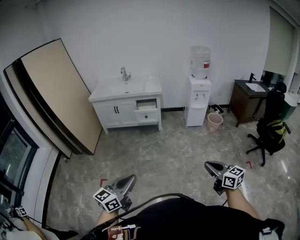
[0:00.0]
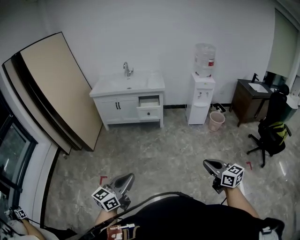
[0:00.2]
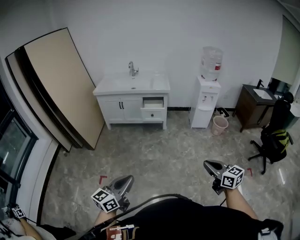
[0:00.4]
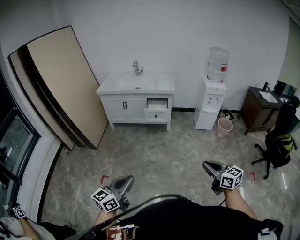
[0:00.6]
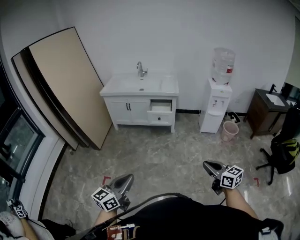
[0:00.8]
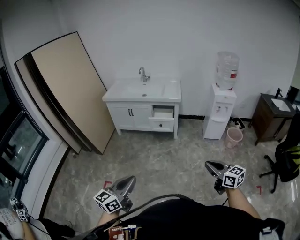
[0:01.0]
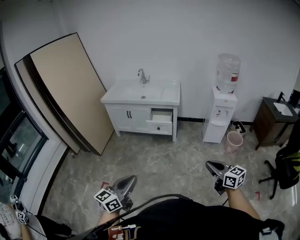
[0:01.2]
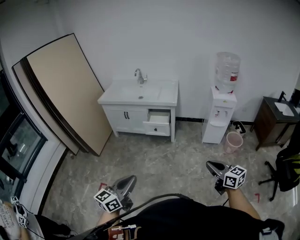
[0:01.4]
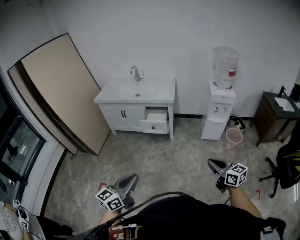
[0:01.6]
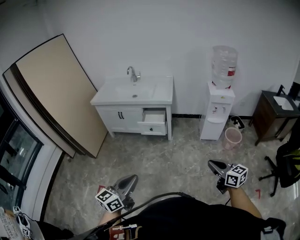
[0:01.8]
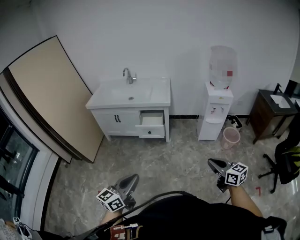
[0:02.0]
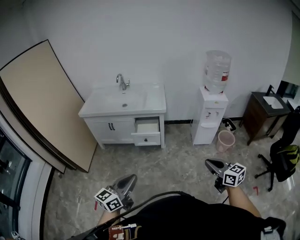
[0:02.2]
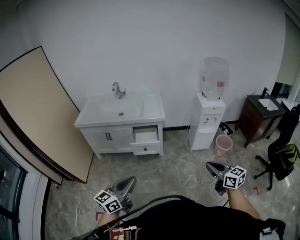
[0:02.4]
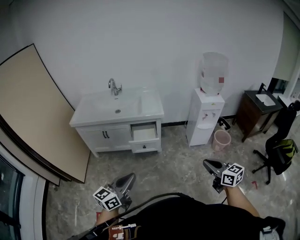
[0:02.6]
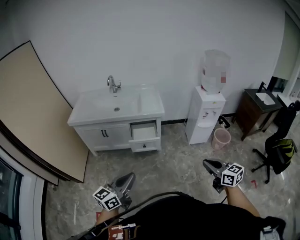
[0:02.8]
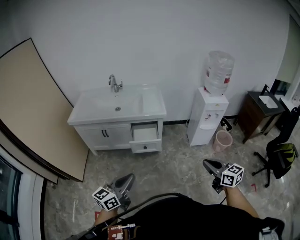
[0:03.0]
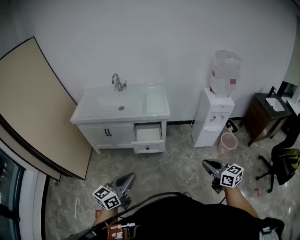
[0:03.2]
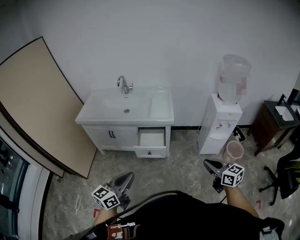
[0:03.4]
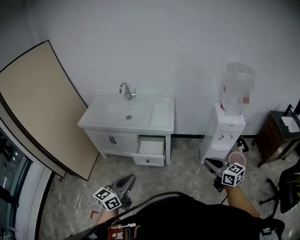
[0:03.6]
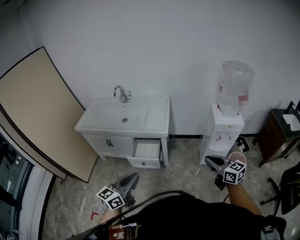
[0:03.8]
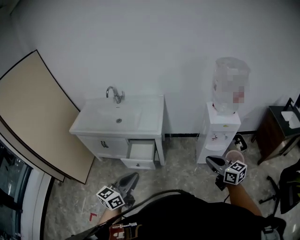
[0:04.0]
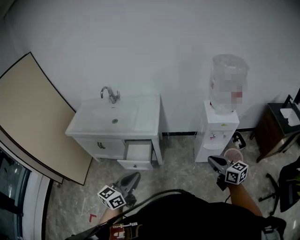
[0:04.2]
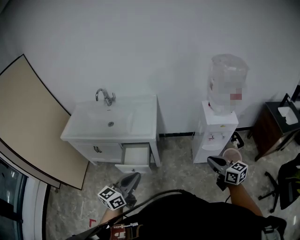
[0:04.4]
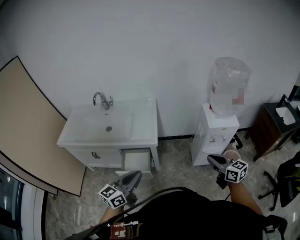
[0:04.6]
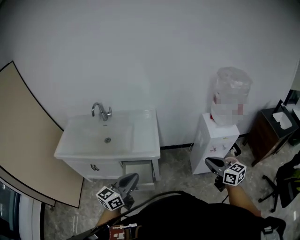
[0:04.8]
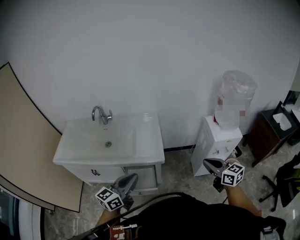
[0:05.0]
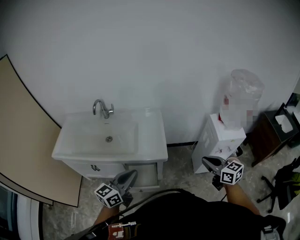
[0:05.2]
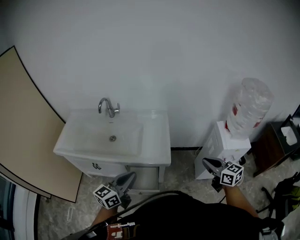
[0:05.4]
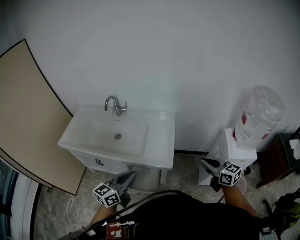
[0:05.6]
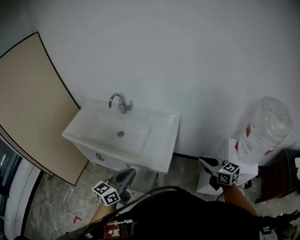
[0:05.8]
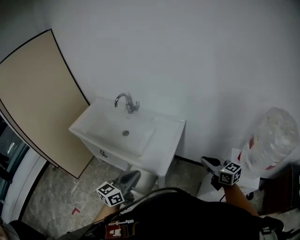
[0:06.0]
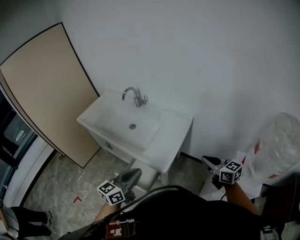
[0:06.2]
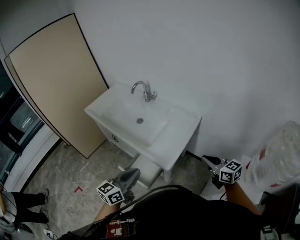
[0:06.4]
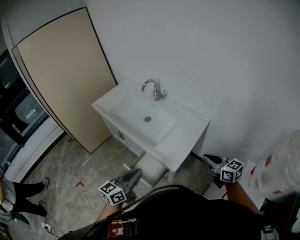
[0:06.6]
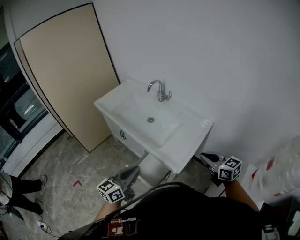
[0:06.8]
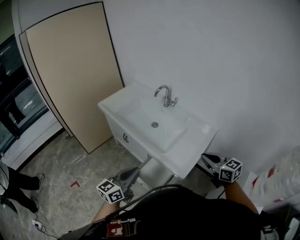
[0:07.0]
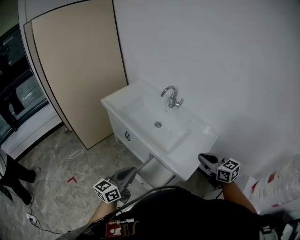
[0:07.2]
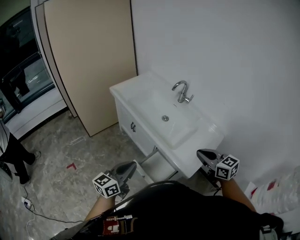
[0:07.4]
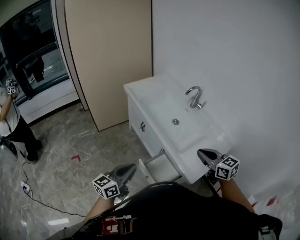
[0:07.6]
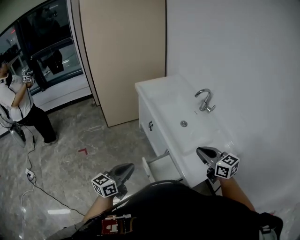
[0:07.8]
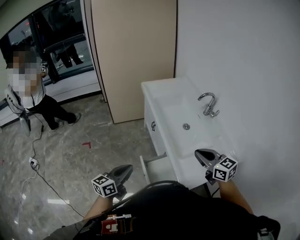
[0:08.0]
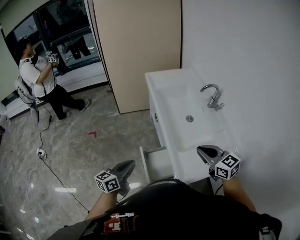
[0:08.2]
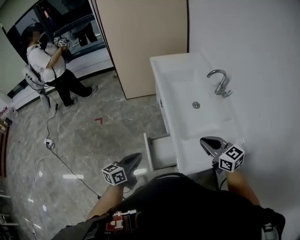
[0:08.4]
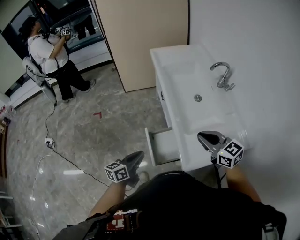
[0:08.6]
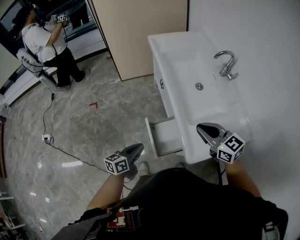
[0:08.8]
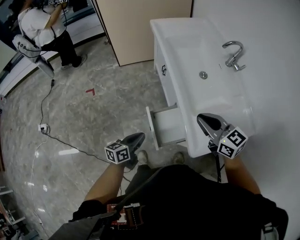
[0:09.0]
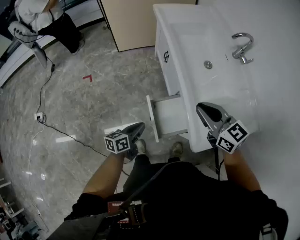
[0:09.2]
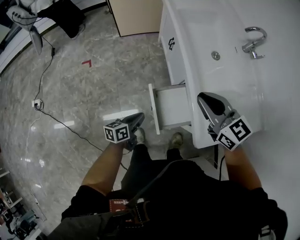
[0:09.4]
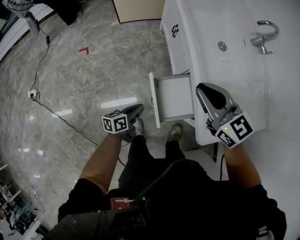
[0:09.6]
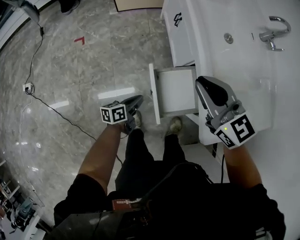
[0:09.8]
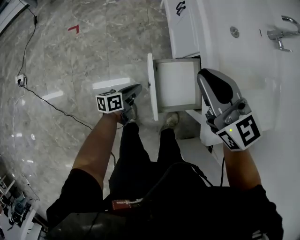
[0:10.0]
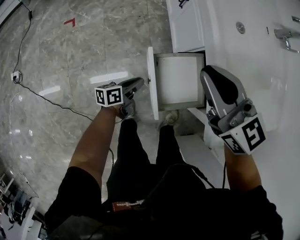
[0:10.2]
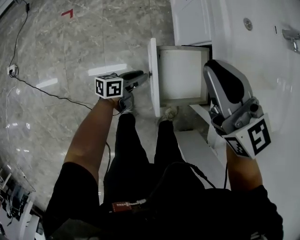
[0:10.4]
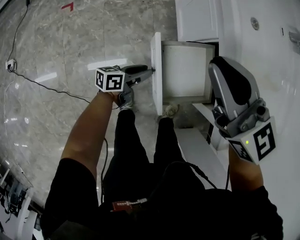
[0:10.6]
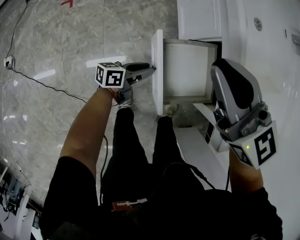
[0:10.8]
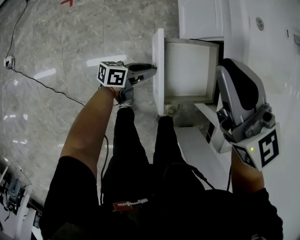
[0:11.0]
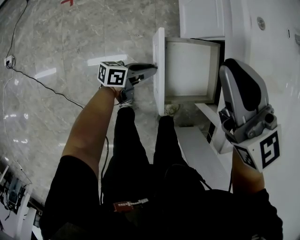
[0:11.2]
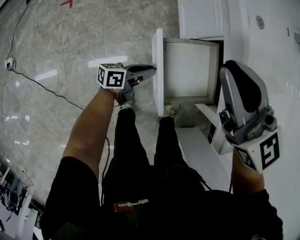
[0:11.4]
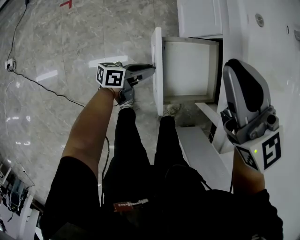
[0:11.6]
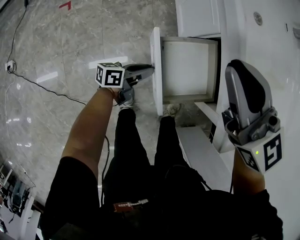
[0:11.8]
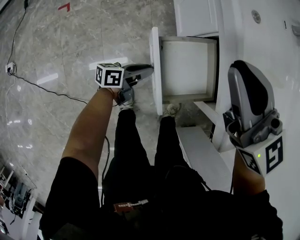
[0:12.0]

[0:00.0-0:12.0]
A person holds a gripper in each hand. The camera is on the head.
0:00.0 to 0:01.6: The grippers both shift forward and to the right by some 35 cm.
0:01.6 to 0:03.0: The two grippers go about 30 cm forward and to the left.
0:03.0 to 0:04.4: The right gripper is displaced forward and to the right by some 40 cm; the left gripper travels to the right and forward by roughly 35 cm.
0:04.4 to 0:06.0: The right gripper shifts by approximately 40 cm, and swivels some 20 degrees; the left gripper ends up roughly 30 cm from where it was.
0:06.0 to 0:07.6: The left gripper changes place by about 25 cm, and turns by approximately 30 degrees; the right gripper shifts by some 35 cm, and turns by roughly 40 degrees.
0:07.6 to 0:09.0: The left gripper shifts approximately 20 cm downward, and changes its angle by roughly 30 degrees, while the right gripper shifts about 10 cm downward and forward, reaches about 10 cm to the right, then returns, and swivels approximately 20 degrees.
0:09.0 to 0:10.4: The right gripper goes about 20 cm downward and to the left, while the left gripper shifts about 30 cm downward, and opens its fingers.
0:10.4 to 0:12.0: There are only small adjustments of the grippers.

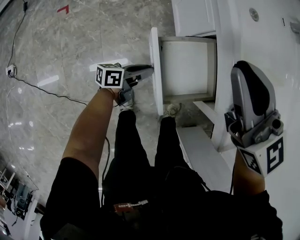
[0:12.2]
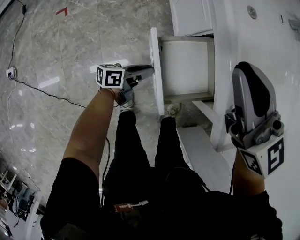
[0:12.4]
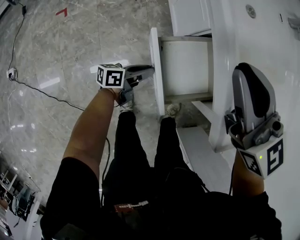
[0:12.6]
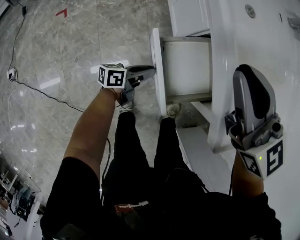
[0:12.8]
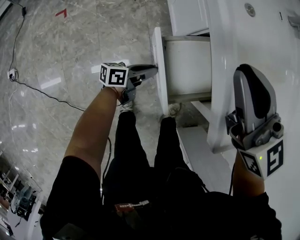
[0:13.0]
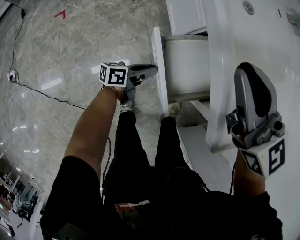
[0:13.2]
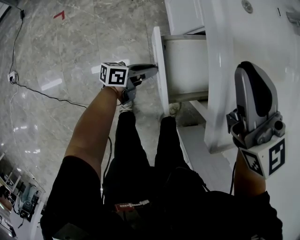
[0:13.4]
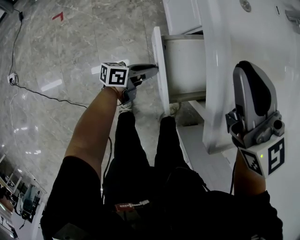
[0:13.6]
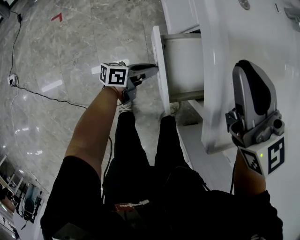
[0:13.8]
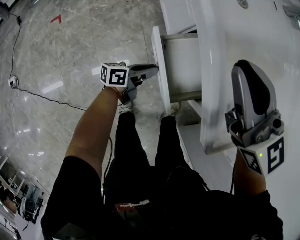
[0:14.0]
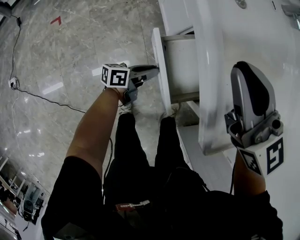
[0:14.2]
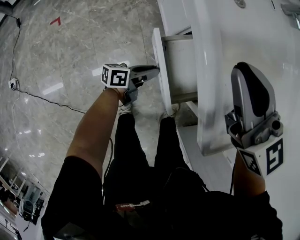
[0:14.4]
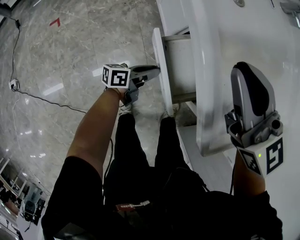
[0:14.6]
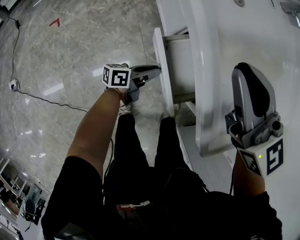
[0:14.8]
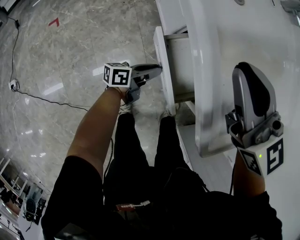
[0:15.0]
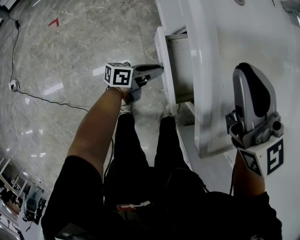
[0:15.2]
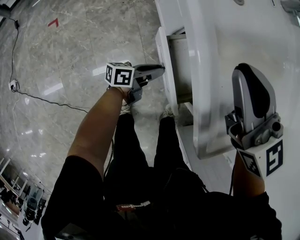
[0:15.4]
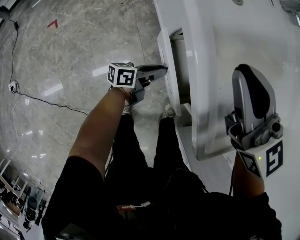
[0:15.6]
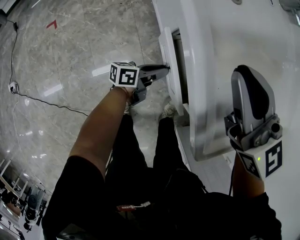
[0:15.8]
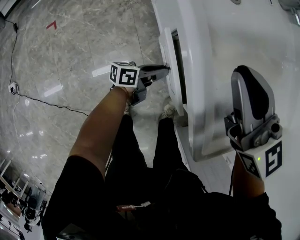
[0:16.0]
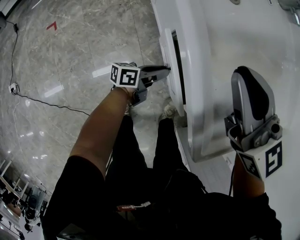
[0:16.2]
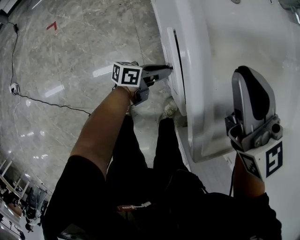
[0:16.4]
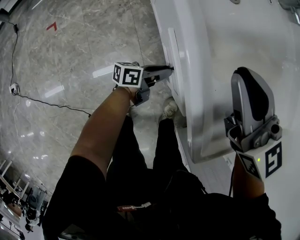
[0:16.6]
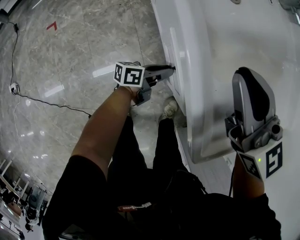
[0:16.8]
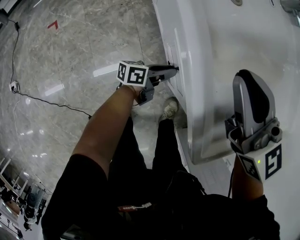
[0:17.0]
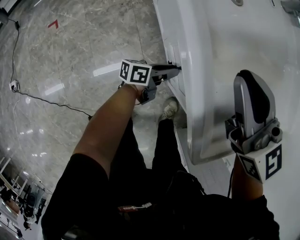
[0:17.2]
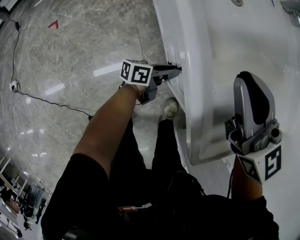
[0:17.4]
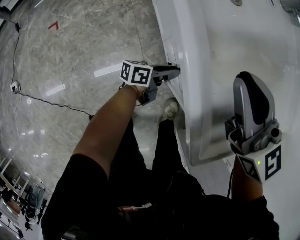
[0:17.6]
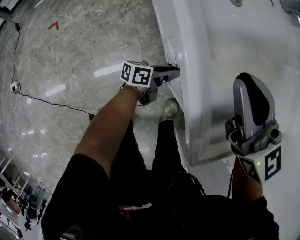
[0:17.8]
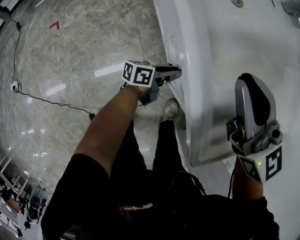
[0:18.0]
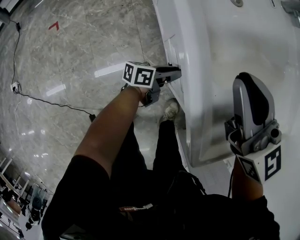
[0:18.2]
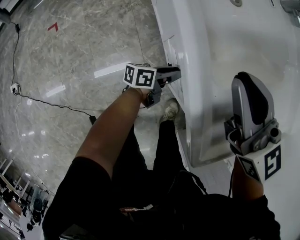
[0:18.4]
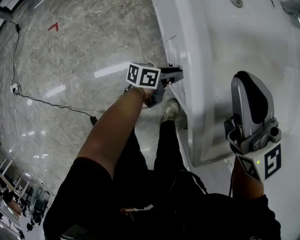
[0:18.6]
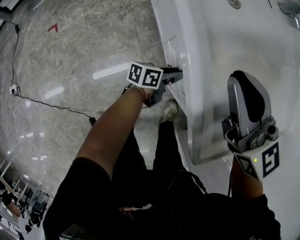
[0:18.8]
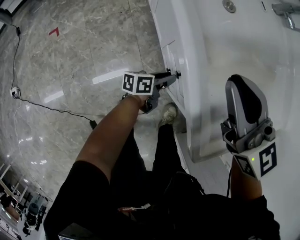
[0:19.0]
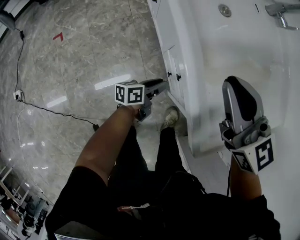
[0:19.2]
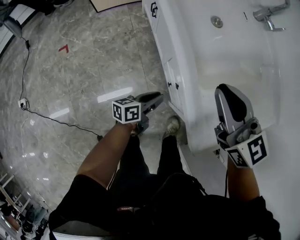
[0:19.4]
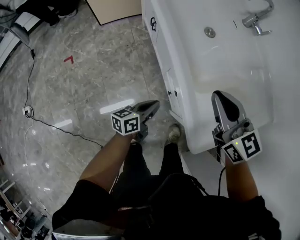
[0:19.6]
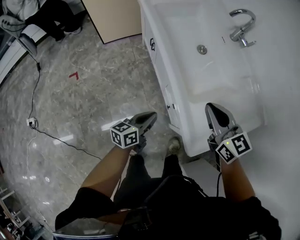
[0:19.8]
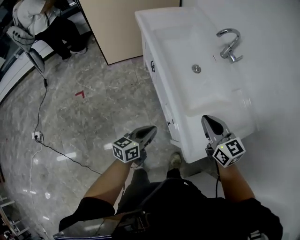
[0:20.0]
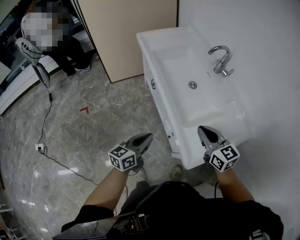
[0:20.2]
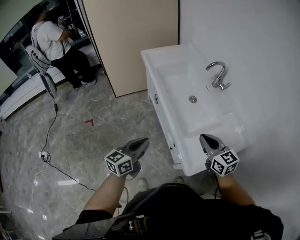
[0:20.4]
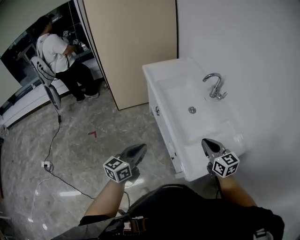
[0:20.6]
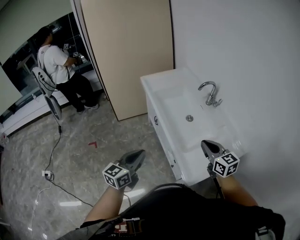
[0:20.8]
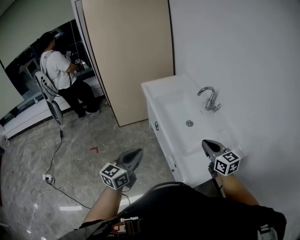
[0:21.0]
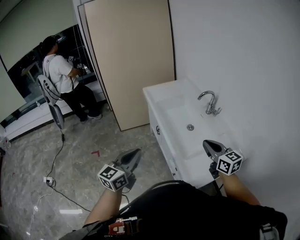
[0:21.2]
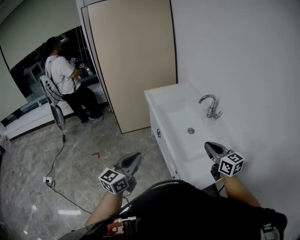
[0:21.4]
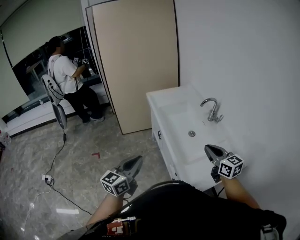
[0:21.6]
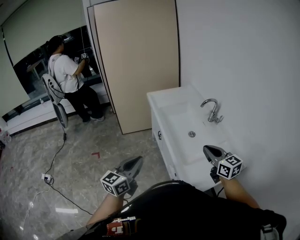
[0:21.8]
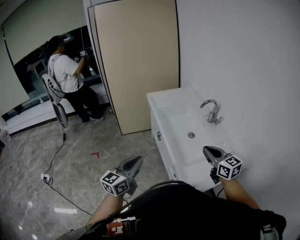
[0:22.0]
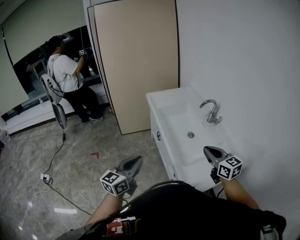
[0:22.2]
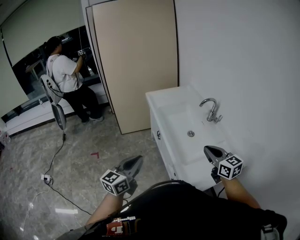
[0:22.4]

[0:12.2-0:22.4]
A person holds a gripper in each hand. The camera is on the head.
0:12.2 to 0:13.6: The left gripper moves about 5 cm. Meanwhile the right gripper shifts by roughly 5 cm.
0:13.6 to 0:15.2: The right gripper ends up about 5 cm from where it was; the left gripper goes some 5 cm to the right.
0:15.2 to 0:16.6: The left gripper changes place by about 5 cm.
0:16.6 to 0:18.0: The grippers stay close to where they were, moving slightly.
0:18.0 to 0:19.4: The left gripper heads upward, to the left and backward, covering about 15 cm. Meanwhile the right gripper moves some 5 cm.
0:19.4 to 0:21.0: The right gripper heads upward, covering some 20 cm. The left gripper shifts some 50 cm upward, rolls clockwise, seen from behind, by approximately 40 degrees, and closes.
0:21.0 to 0:22.4: There are only small adjustments of the grippers.

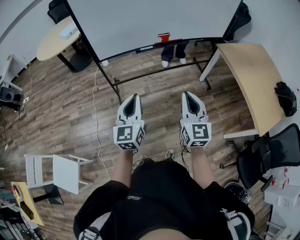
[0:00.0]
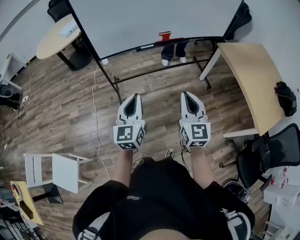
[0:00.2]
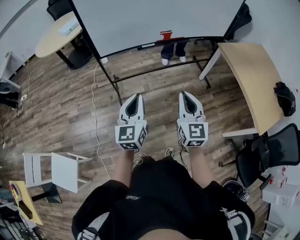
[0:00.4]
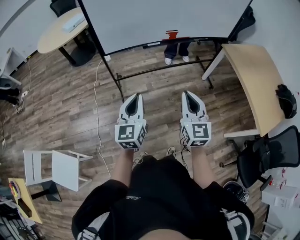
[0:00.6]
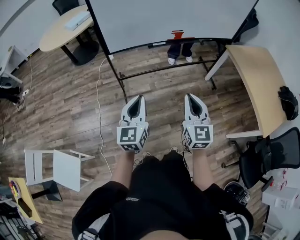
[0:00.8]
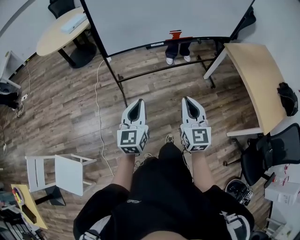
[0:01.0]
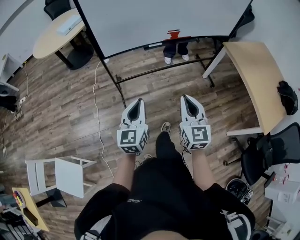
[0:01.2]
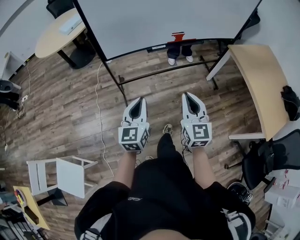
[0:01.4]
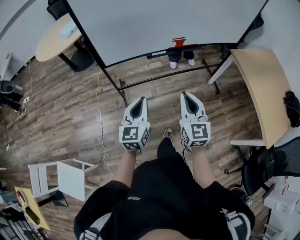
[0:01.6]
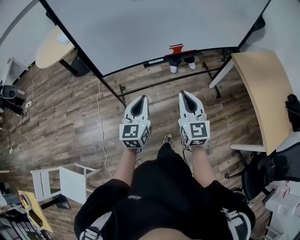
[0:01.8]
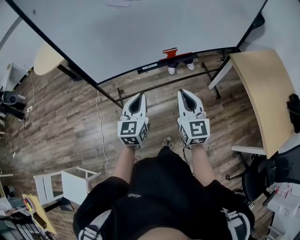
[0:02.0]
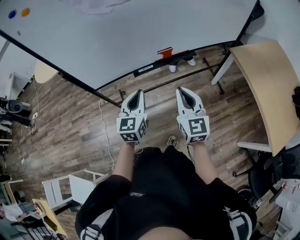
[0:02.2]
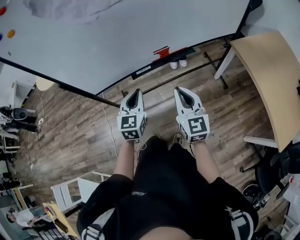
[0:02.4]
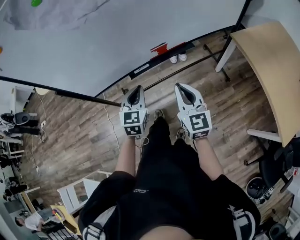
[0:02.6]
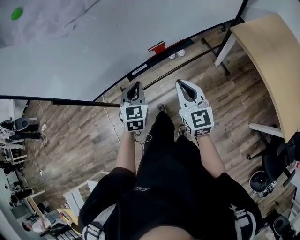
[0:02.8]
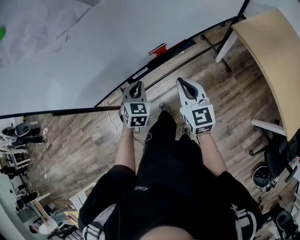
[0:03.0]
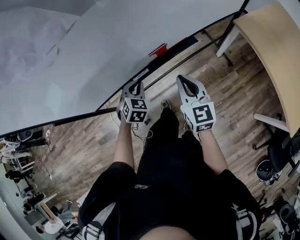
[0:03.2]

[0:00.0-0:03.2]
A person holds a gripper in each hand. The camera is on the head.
0:00.0 to 0:01.6: The right gripper travels forward and to the left by roughly 15 cm. Meanwhile the left gripper heads forward, downward and to the left, covering about 15 cm.
0:01.6 to 0:03.2: Both grippers travel together forward, approximately 35 cm. The left gripper tilts its fingers approximately 40 degrees downward.
